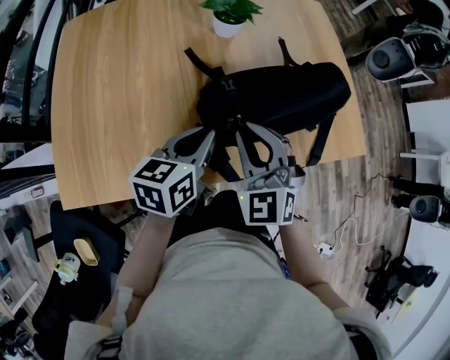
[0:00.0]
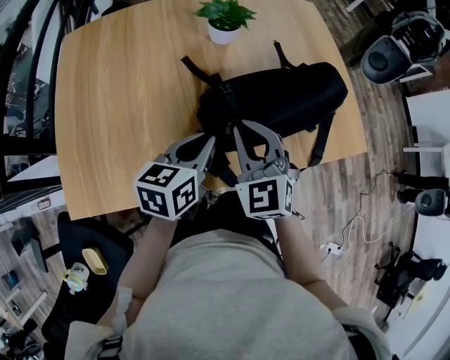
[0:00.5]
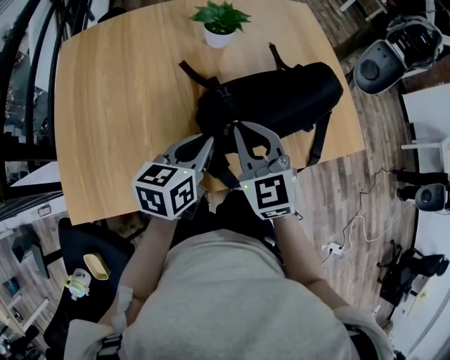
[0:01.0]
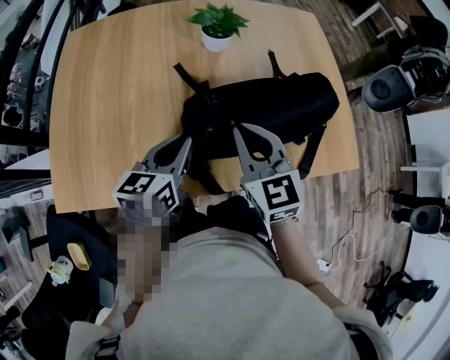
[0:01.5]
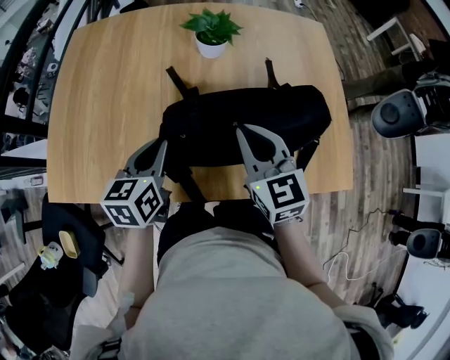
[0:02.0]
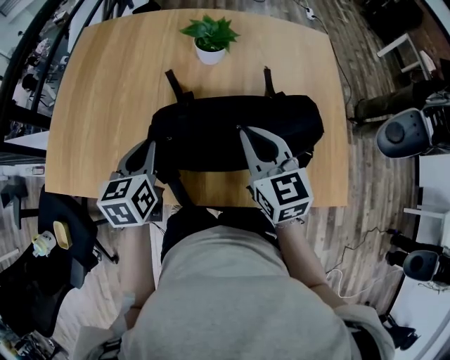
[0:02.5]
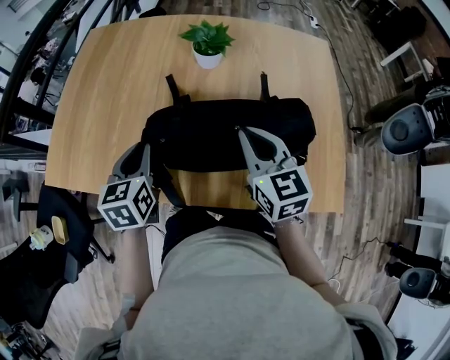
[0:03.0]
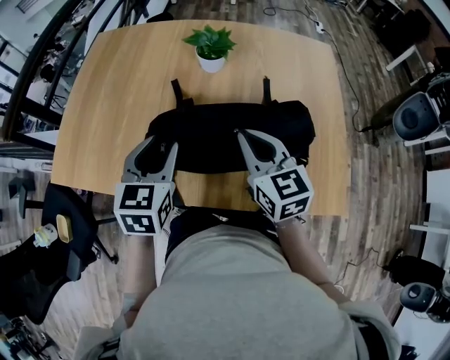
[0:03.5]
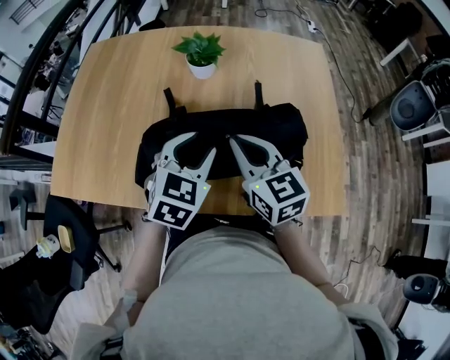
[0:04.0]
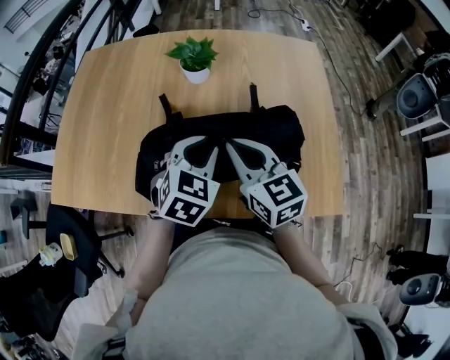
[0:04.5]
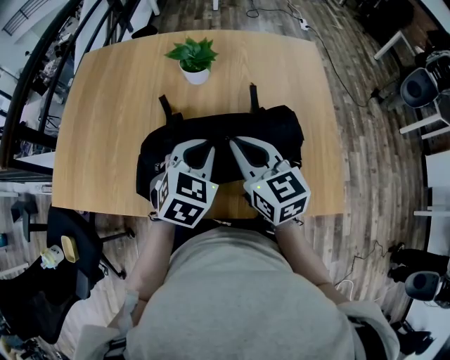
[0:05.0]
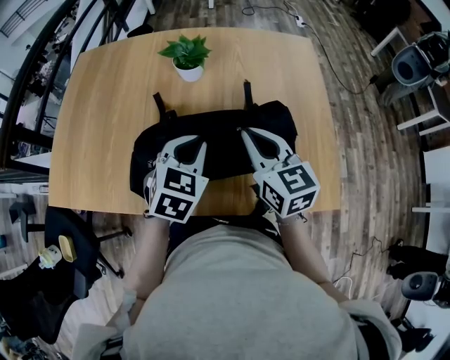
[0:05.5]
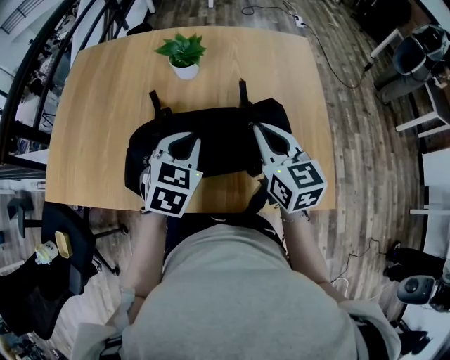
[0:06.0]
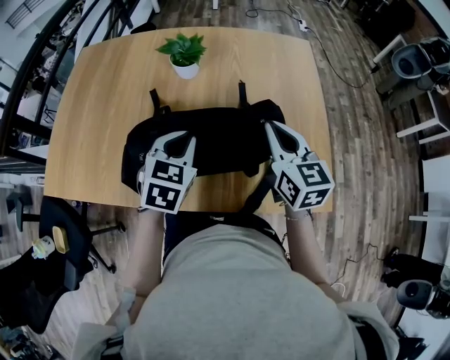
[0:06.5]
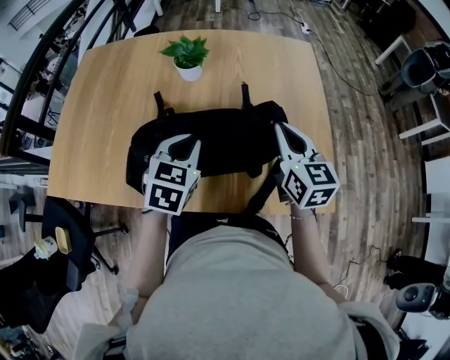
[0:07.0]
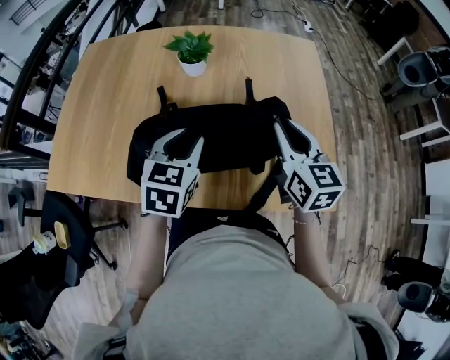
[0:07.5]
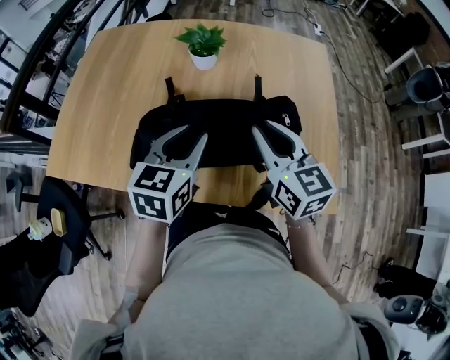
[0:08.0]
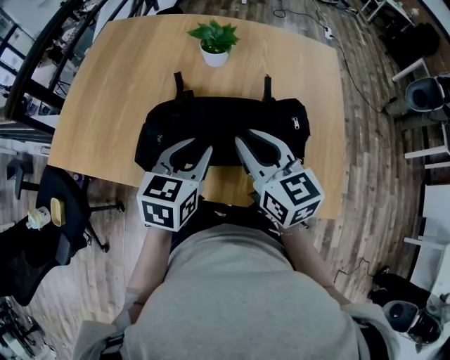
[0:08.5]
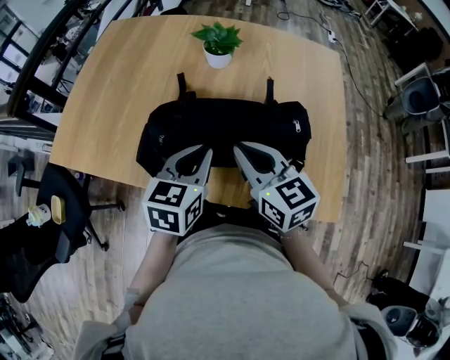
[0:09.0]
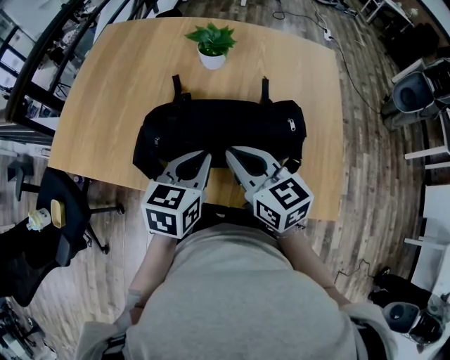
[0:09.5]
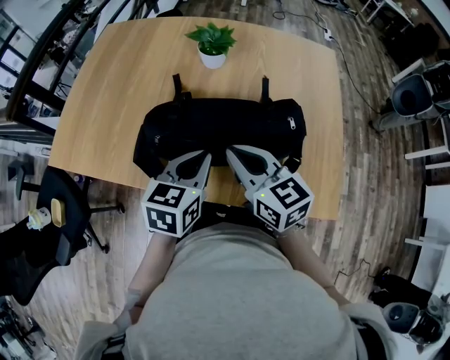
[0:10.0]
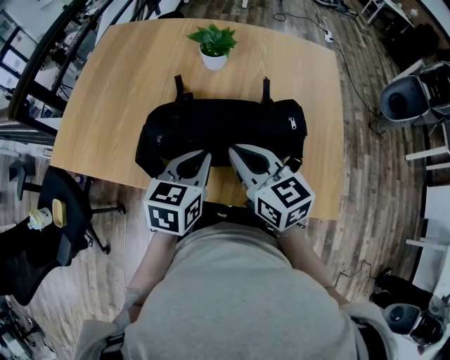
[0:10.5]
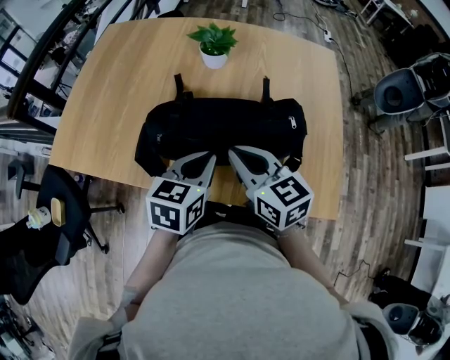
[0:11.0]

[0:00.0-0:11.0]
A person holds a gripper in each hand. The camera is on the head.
0:00.0 to 0:02.0: The right gripper moves to the right and forward, roughly 10 cm, and turns by approximately 30 degrees. The left gripper changes its angle by approximately 20 degrees.
0:02.0 to 0:03.5: The left gripper is displaced to the right and upward by approximately 10 cm, changes its angle by about 20 degrees, and opens its fingers. The right gripper is displaced to the right by roughly 5 cm.
0:03.5 to 0:05.5: The right gripper shifts approximately 5 cm to the right; the left gripper moves to the right, about 10 cm, rotates roughly 20 degrees, and closes.
0:05.5 to 0:07.5: The right gripper moves to the right, roughly 10 cm.
0:07.5 to 0:09.0: The right gripper is displaced to the left by approximately 15 cm, and swivels some 30 degrees.
0:09.0 to 0:11.0: The grippers move only a little.

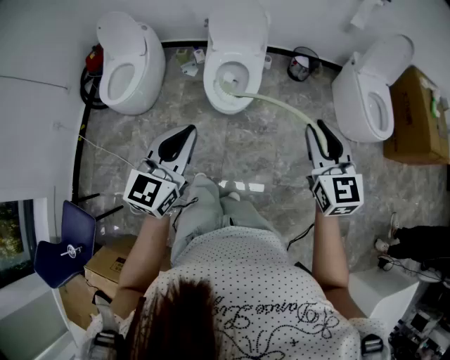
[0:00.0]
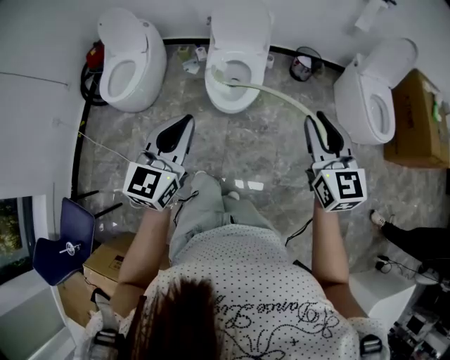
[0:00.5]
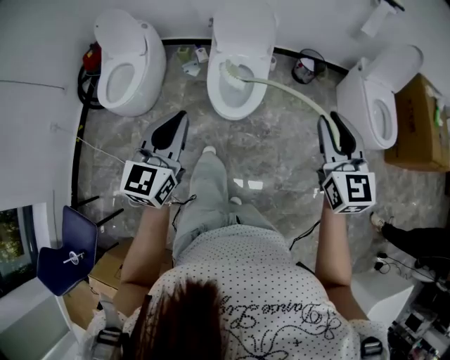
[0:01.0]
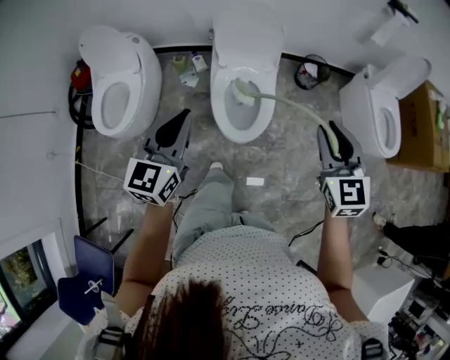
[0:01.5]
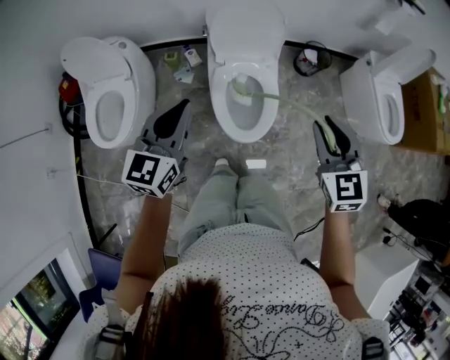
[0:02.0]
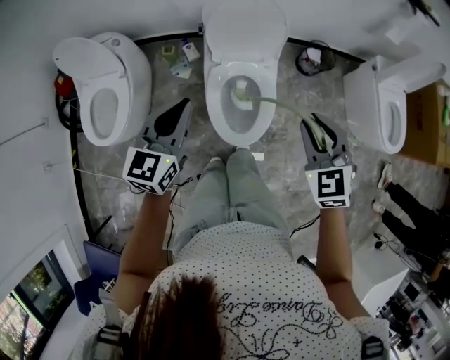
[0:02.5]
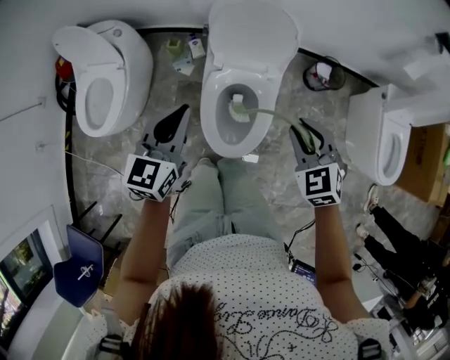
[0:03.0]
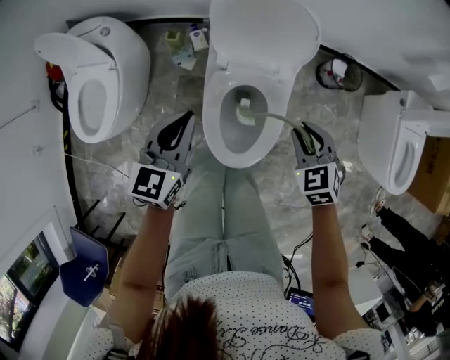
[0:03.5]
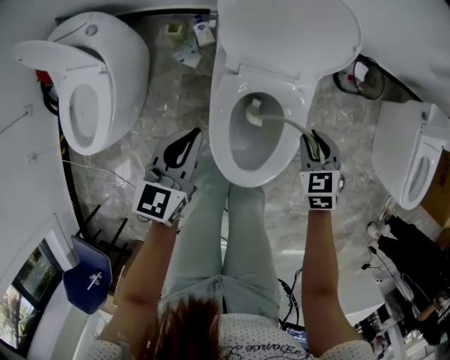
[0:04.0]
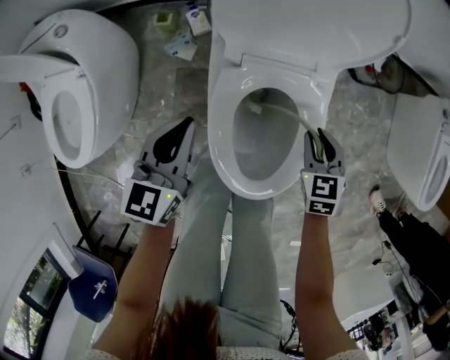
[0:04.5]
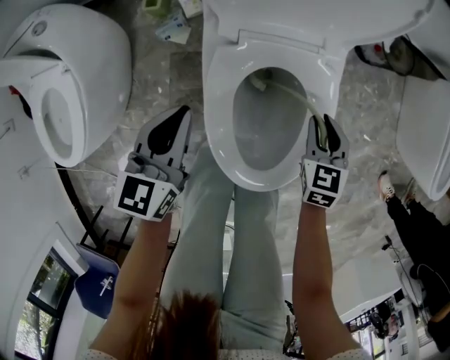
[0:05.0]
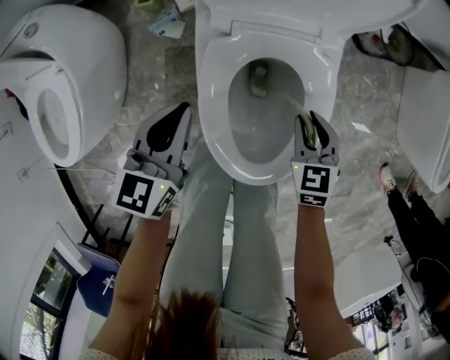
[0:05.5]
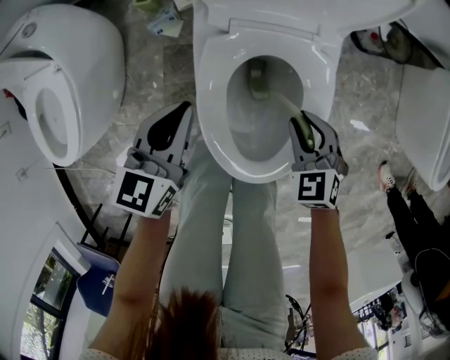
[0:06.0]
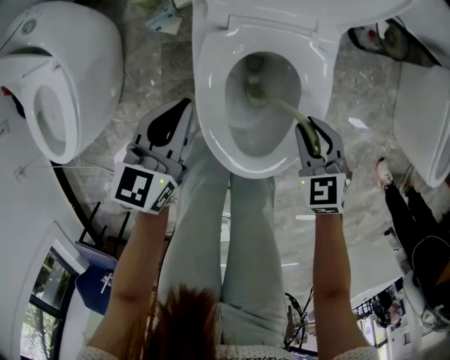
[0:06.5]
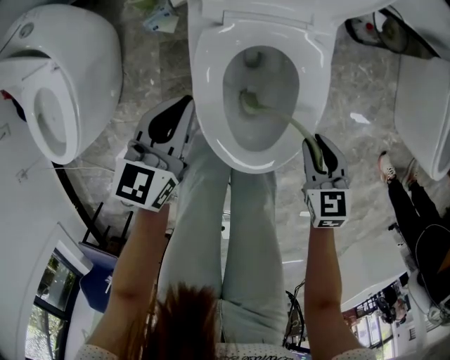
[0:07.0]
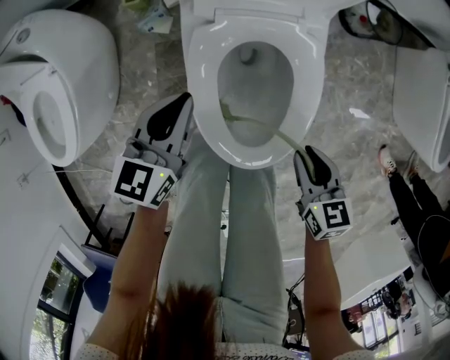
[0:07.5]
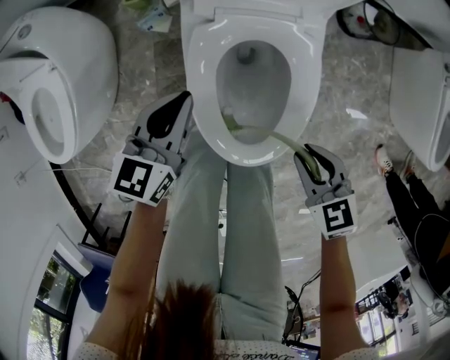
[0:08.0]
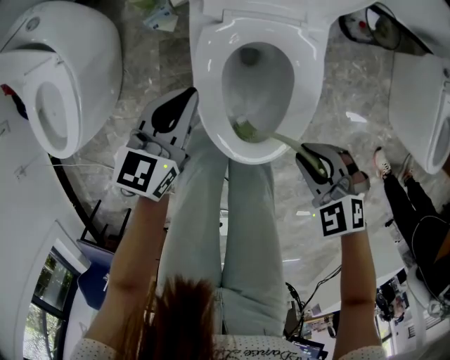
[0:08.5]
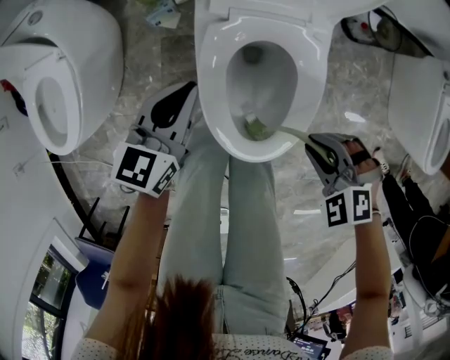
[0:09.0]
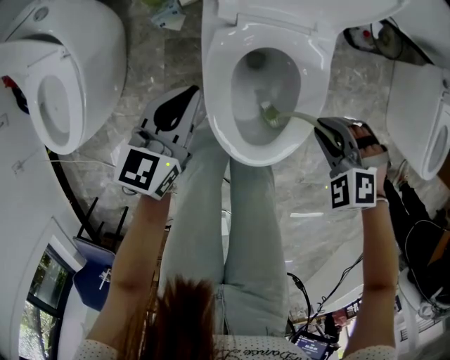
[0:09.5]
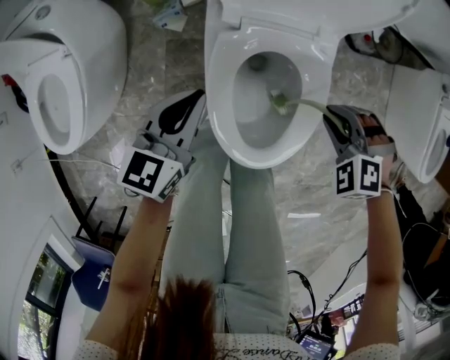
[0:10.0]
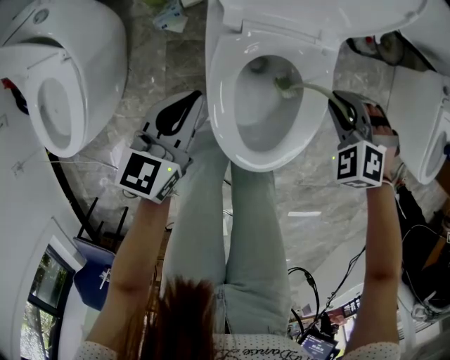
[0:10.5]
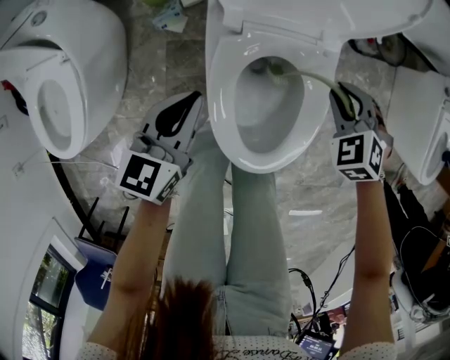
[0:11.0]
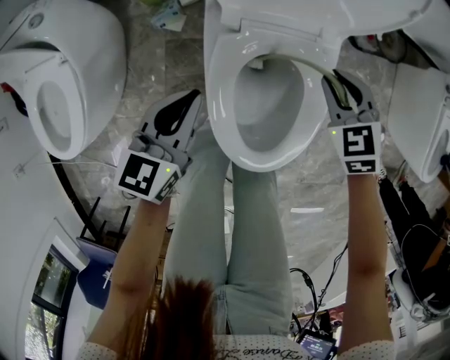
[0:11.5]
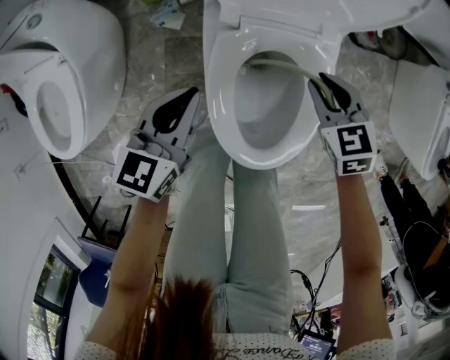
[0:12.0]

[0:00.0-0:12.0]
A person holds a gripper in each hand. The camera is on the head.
0:00.0 to 0:02.0: The two grippers go roughly 35 cm forward and to the left.
0:02.0 to 0:04.0: The grippers both shift downward and forward by roughly 40 cm. The right gripper turns by about 30 degrees.
0:04.0 to 0:06.0: The grippers both shift downward by approximately 15 cm.
0:06.0 to 0:08.0: The right gripper is displaced backward and upward by about 15 cm, and swivels about 20 degrees.
0:08.0 to 0:10.0: The right gripper goes some 10 cm forward, and twists roughly 60 degrees counterclockwise, seen from behind.
0:10.0 to 0:12.0: The right gripper shifts about 10 cm forward, and rolls clockwise, seen from behind, by about 50 degrees.

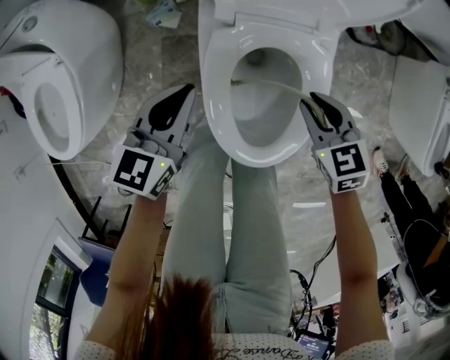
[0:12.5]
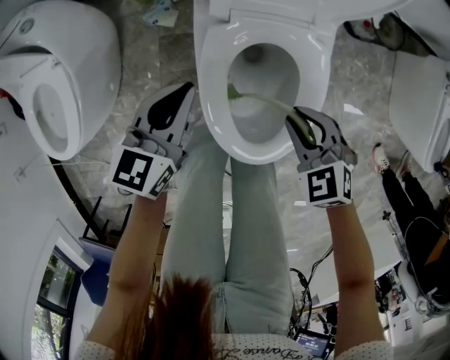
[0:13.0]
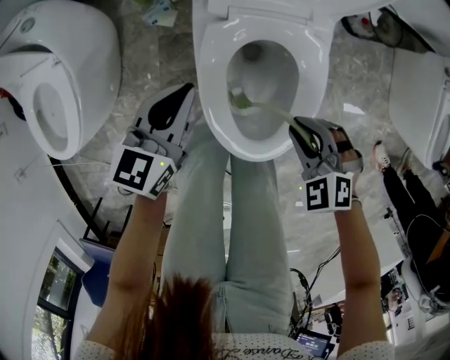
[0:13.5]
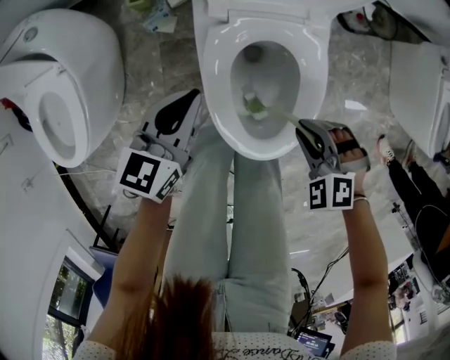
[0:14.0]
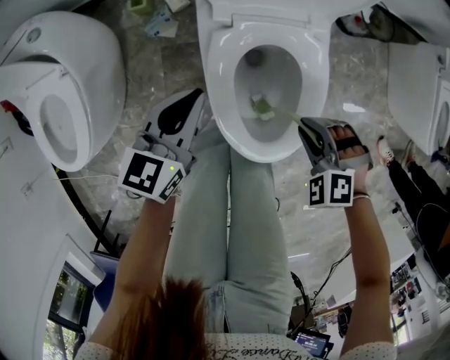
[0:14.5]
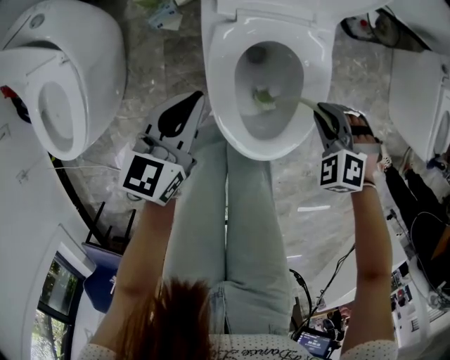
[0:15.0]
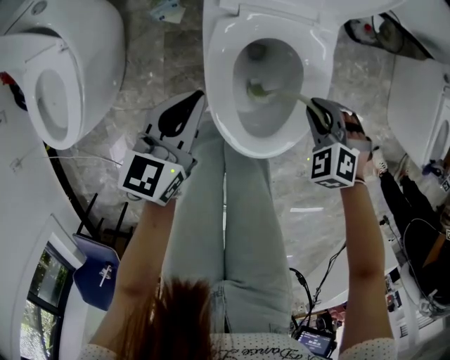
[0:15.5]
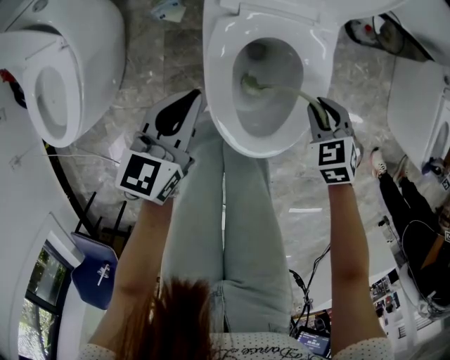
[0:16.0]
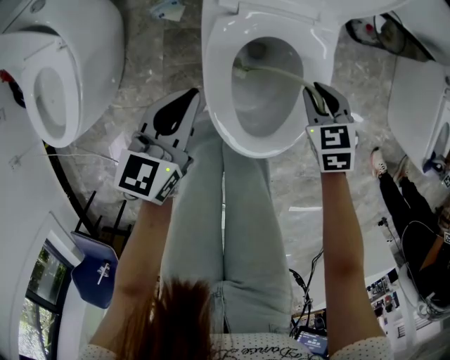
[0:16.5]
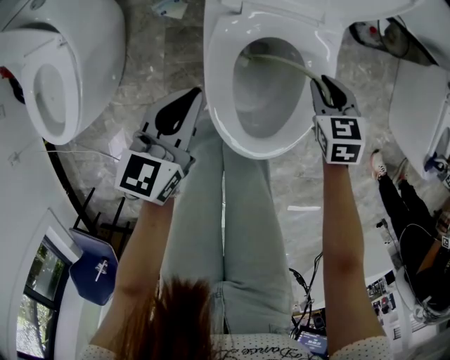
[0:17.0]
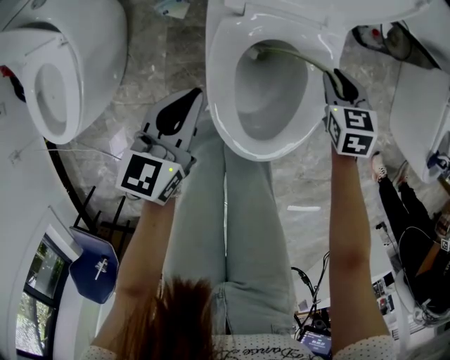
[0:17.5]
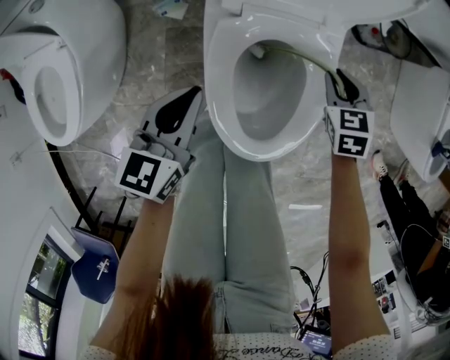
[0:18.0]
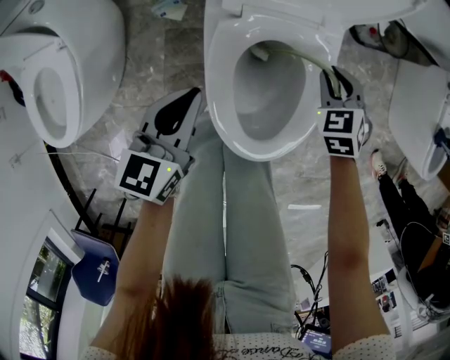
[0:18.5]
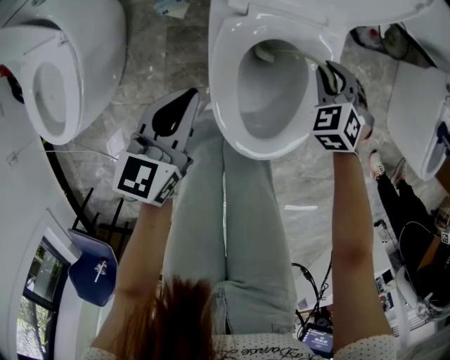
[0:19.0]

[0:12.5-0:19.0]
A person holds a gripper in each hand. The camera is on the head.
0:12.5 to 0:14.5: The right gripper is displaced backward by roughly 10 cm, and rotates around the line of its fingers by approximately 50 degrees, counterclockwise from behind.
0:14.5 to 0:17.0: The right gripper heads forward, covering roughly 10 cm, and rolls clockwise, seen from behind, by roughly 50 degrees.
0:17.0 to 0:19.0: The right gripper rotates about 40 degrees.
